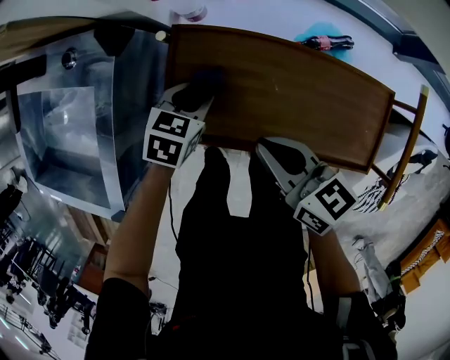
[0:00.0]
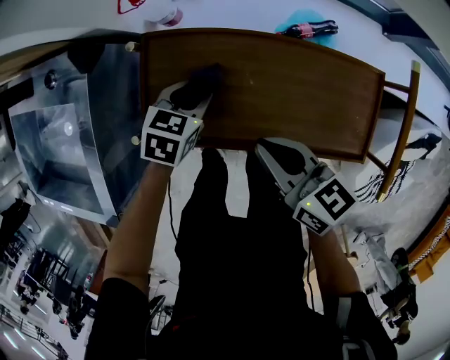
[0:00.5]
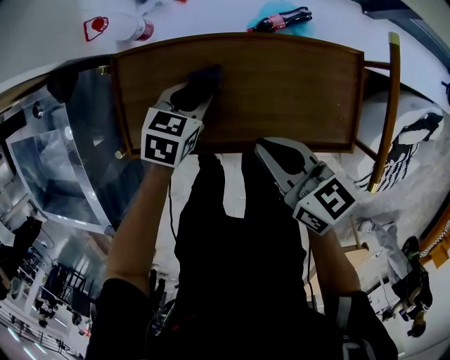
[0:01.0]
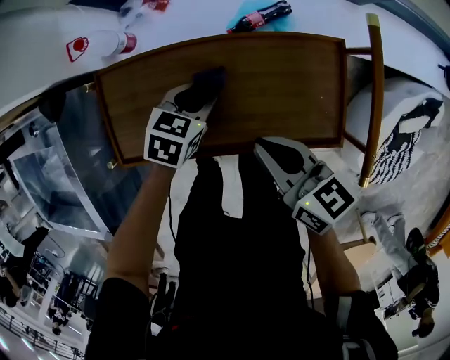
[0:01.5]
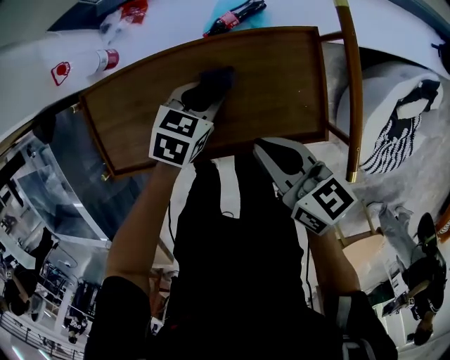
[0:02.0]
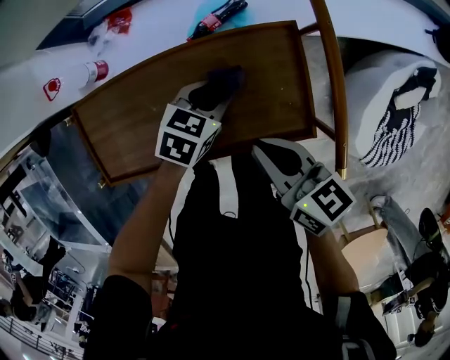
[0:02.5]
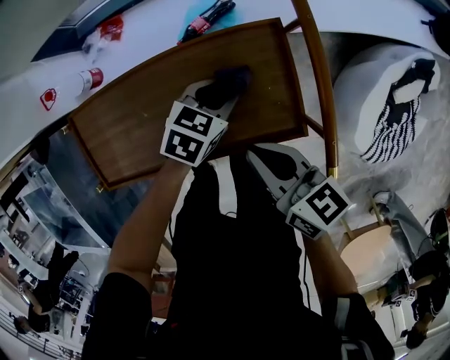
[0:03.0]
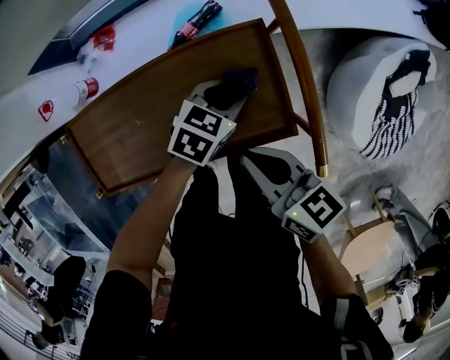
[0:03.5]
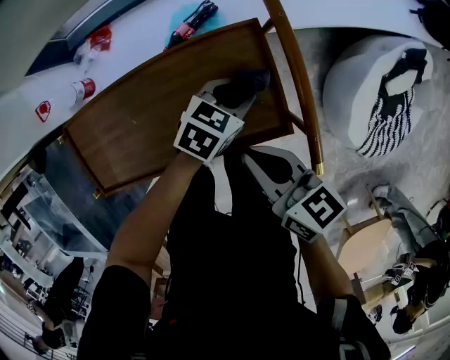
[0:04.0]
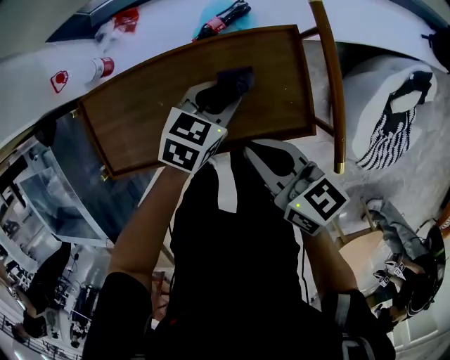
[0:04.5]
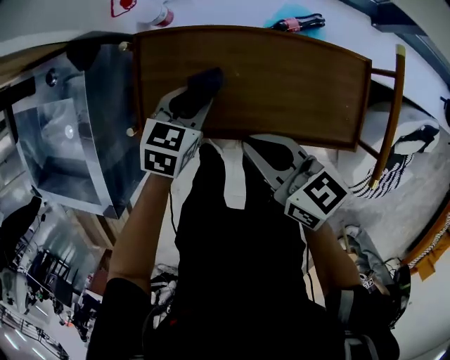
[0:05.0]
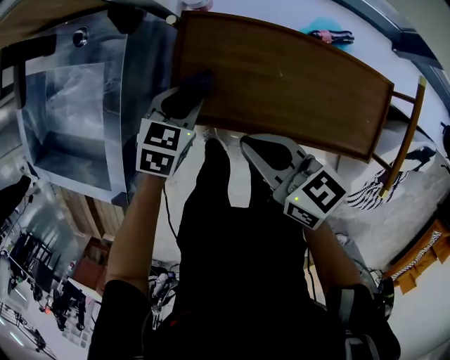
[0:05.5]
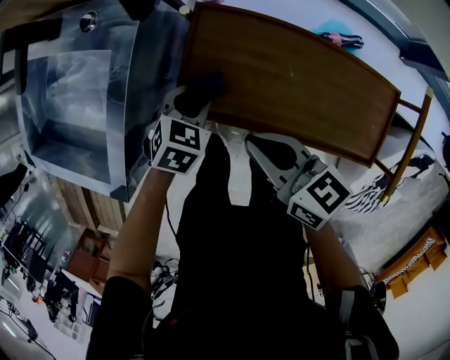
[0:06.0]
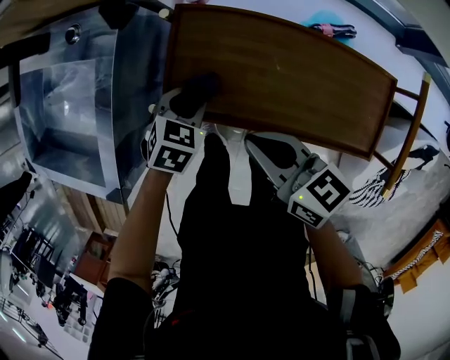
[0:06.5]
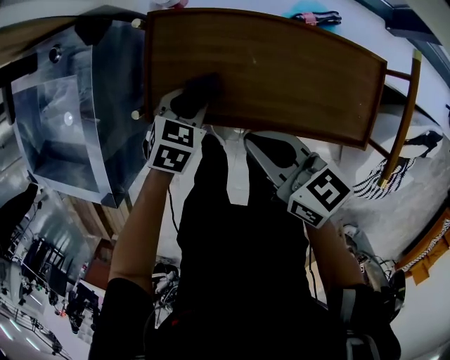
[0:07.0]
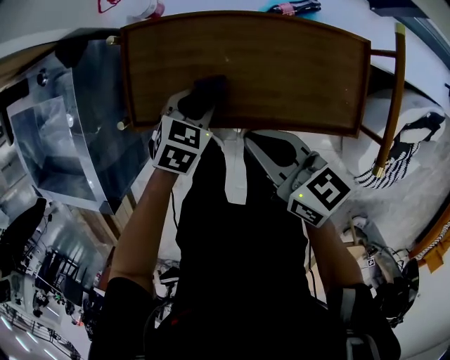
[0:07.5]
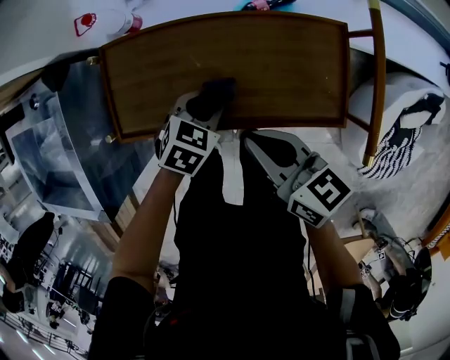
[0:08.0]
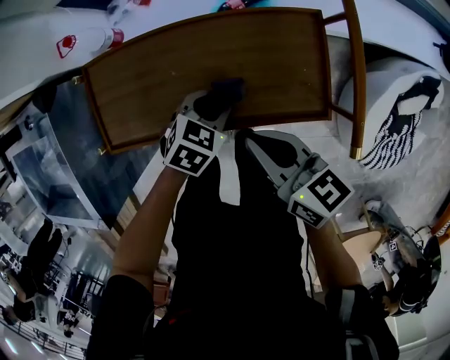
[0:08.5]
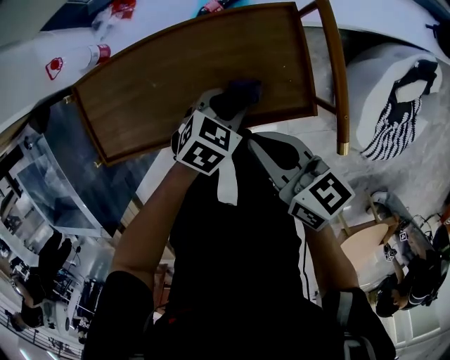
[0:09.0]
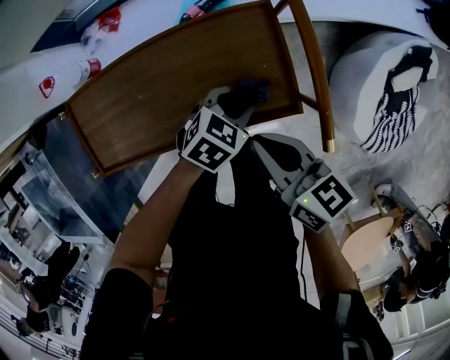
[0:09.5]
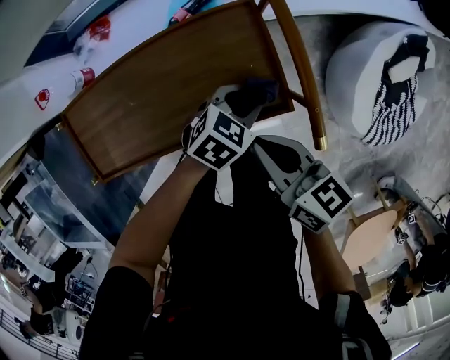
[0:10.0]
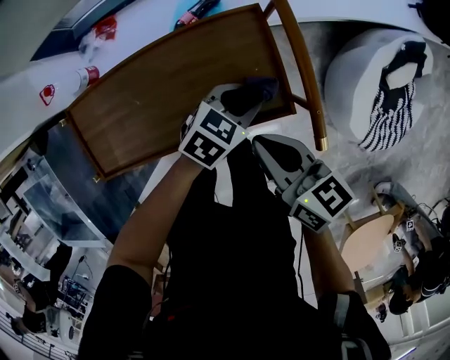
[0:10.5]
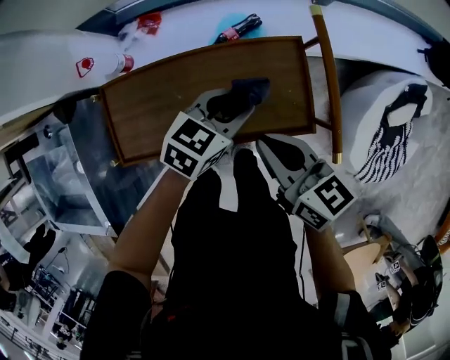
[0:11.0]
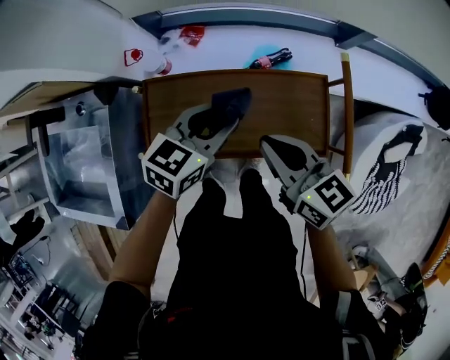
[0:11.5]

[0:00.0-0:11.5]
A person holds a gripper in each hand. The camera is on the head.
0:00.0 to 0:02.0: The two grippers go approximately 25 cm to the right. The left gripper swivels about 20 degrees, while the right gripper swivels some 20 degrees.
0:02.0 to 0:04.0: The left gripper goes about 20 cm to the right. The right gripper travels to the right by approximately 10 cm.
0:04.0 to 0:06.0: The left gripper changes place by roughly 50 cm, and turns by approximately 40 degrees. The right gripper moves approximately 35 cm, and changes its angle by some 40 degrees.
0:06.0 to 0:07.5: Both grippers travel together to the right, roughly 15 cm.
0:07.5 to 0:09.5: The left gripper ends up roughly 30 cm from where it was, and rotates approximately 30 degrees. Meanwhile the right gripper ends up some 20 cm from where it was, and swivels some 20 degrees.
0:09.5 to 0:11.5: The left gripper shifts some 30 cm to the left and upward, and rotates some 40 degrees. Meanwhile the right gripper heads to the left and upward, covering about 20 cm, and turns by about 20 degrees.

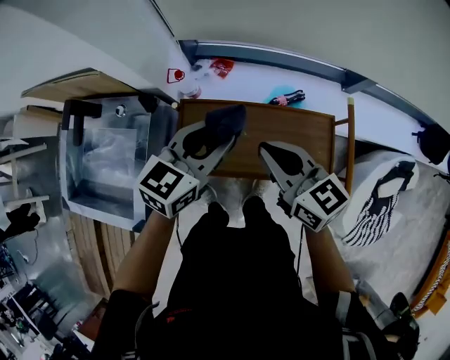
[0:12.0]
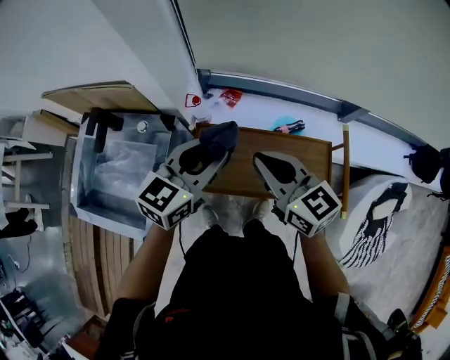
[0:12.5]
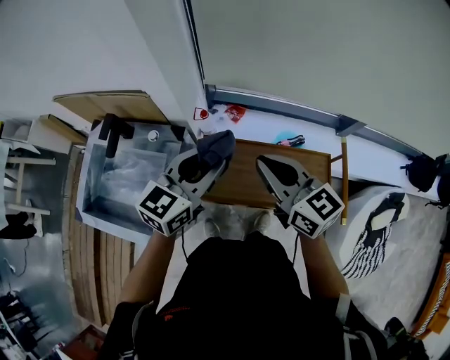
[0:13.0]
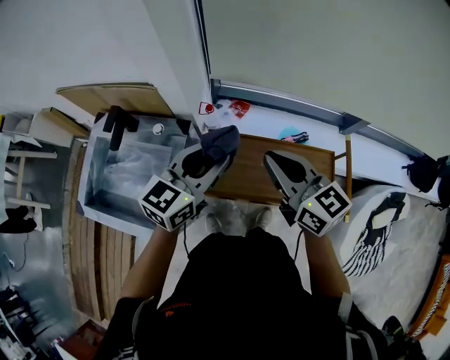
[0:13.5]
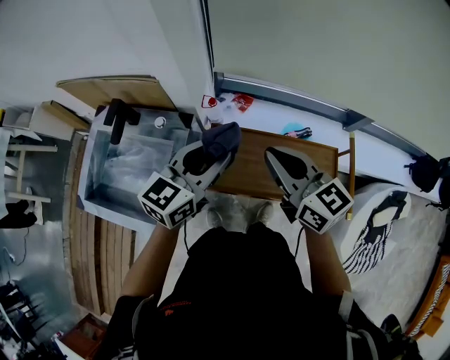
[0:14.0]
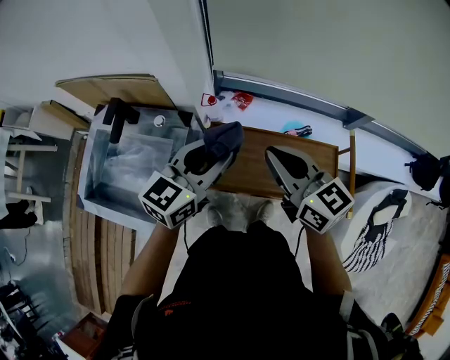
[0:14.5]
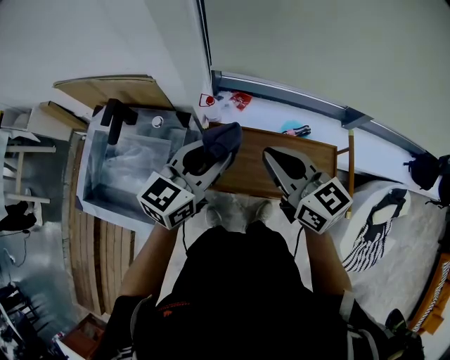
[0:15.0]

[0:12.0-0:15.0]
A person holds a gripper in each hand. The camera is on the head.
0:12.0 to 0:13.5: The right gripper shifts about 15 cm upward and to the left; the left gripper shifts approximately 15 cm to the left and upward.
0:13.5 to 0:15.0: The grippers stay close to where they were, moving slightly.

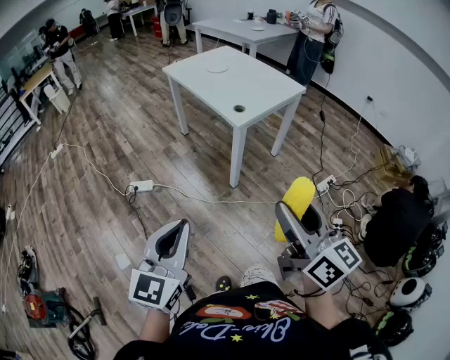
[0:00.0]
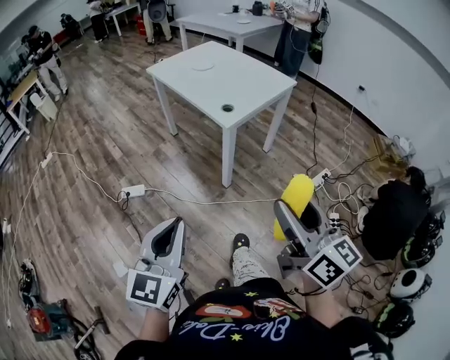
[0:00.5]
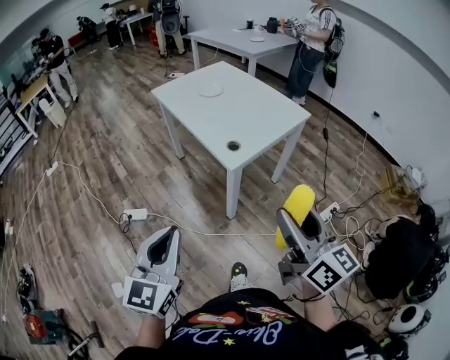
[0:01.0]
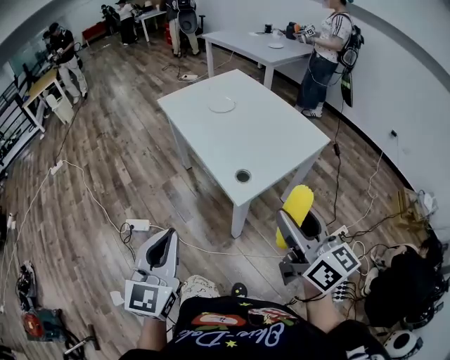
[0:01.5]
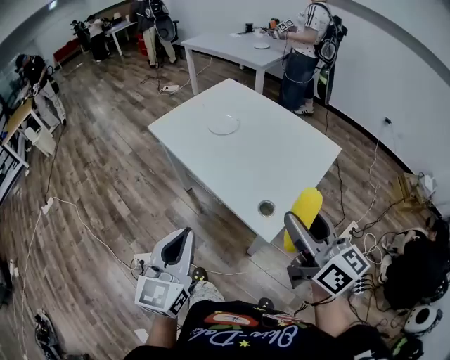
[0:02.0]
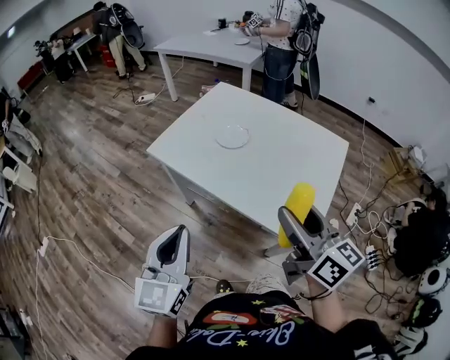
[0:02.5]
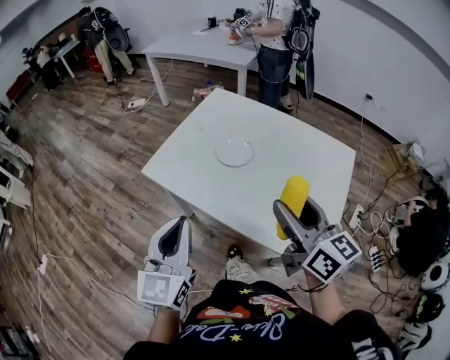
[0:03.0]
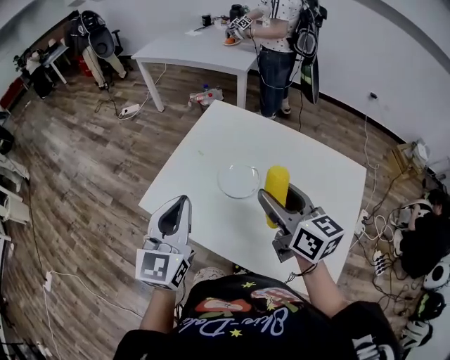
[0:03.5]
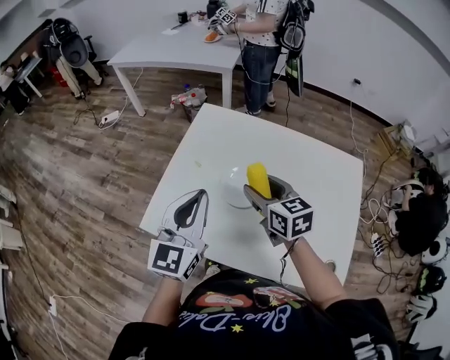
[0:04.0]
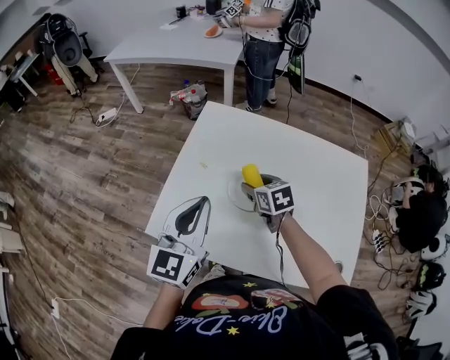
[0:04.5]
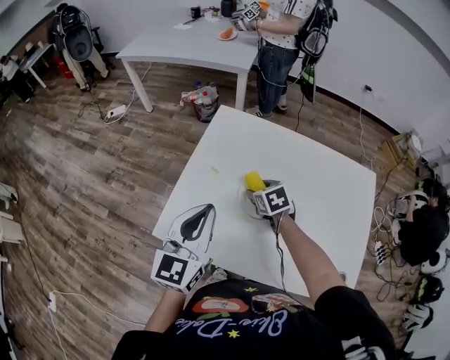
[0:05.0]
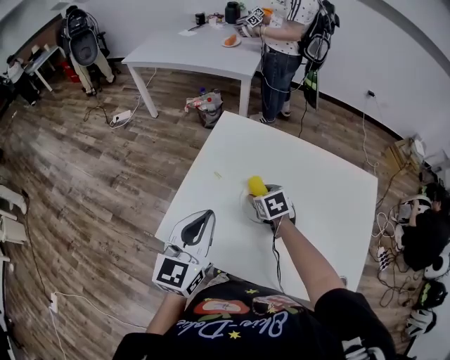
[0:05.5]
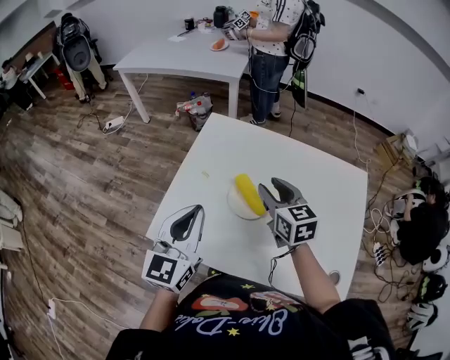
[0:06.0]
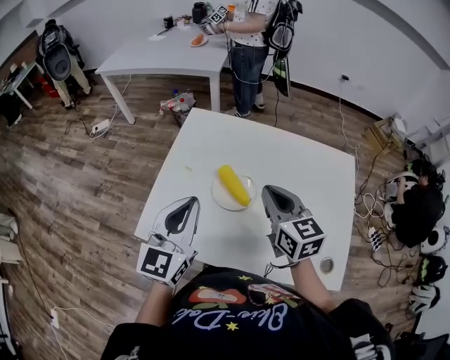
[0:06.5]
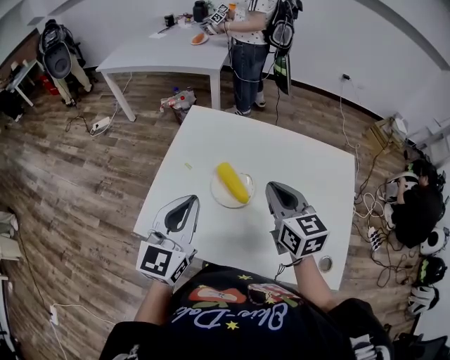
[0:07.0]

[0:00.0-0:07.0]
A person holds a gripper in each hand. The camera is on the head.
0:00.0 to 0:02.0: Both grippers are carried forward, about 50 cm.
0:02.0 to 0:03.5: Both grippers are carried forward, about 50 cm.
0:03.5 to 0:05.0: The right gripper is displaced downward and forward by some 30 cm, and angles its fingers downward, by approximately 50 degrees; the left gripper shifts some 10 cm forward.
0:05.0 to 0:07.0: The left gripper travels to the right by roughly 5 cm; the right gripper heads upward, to the right and backward, covering approximately 25 cm, tips its fingers upward by about 40 degrees, and closes.

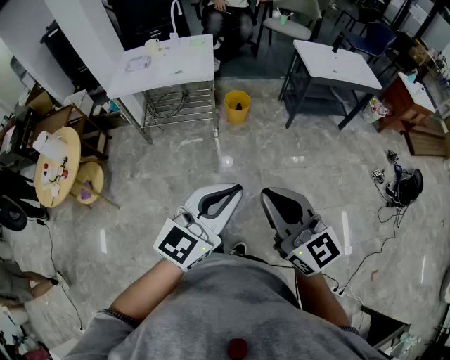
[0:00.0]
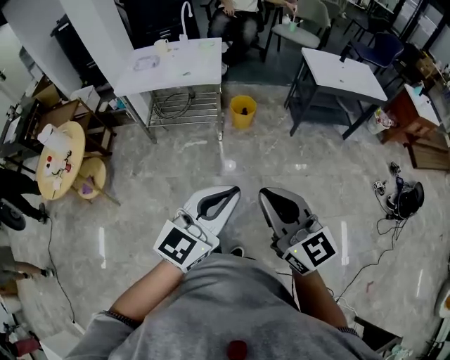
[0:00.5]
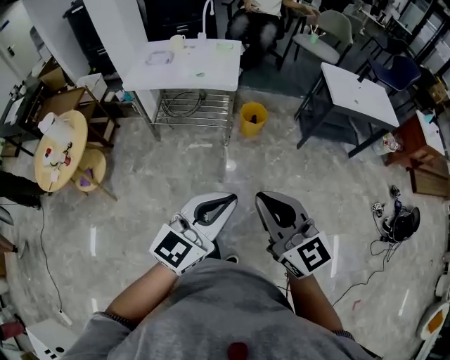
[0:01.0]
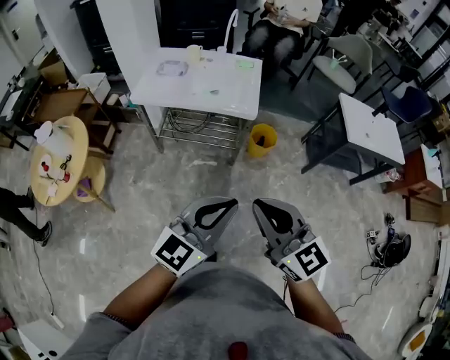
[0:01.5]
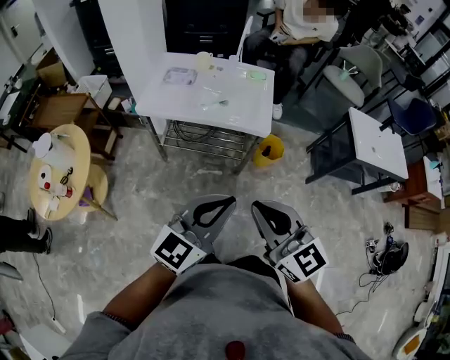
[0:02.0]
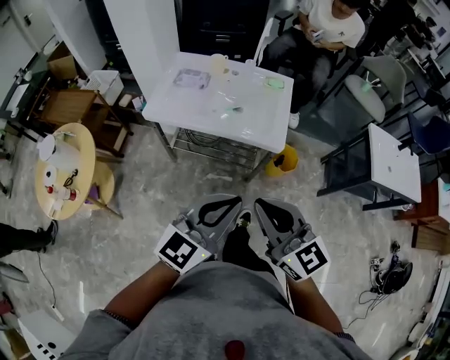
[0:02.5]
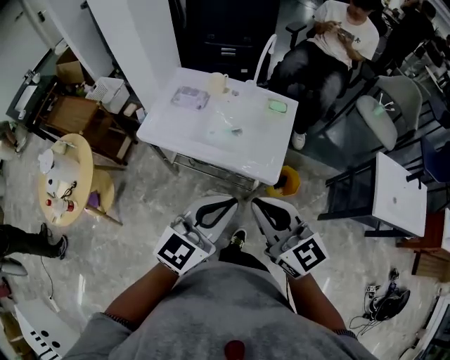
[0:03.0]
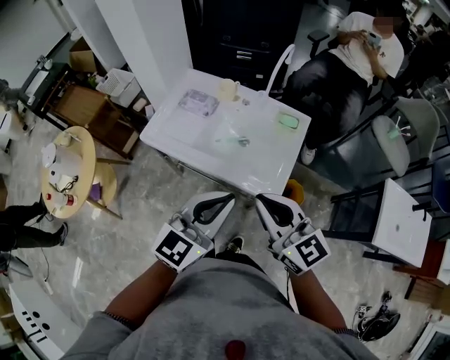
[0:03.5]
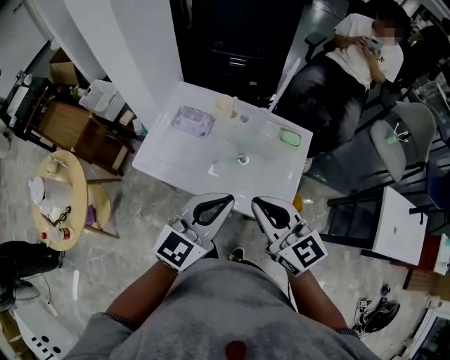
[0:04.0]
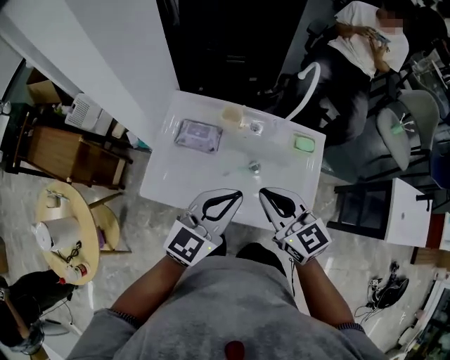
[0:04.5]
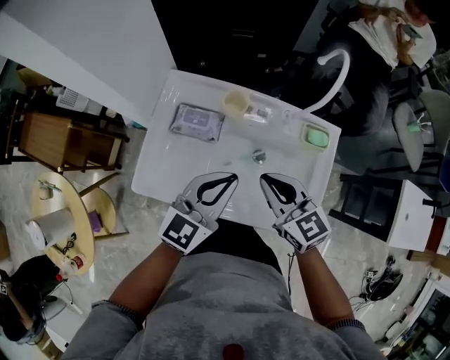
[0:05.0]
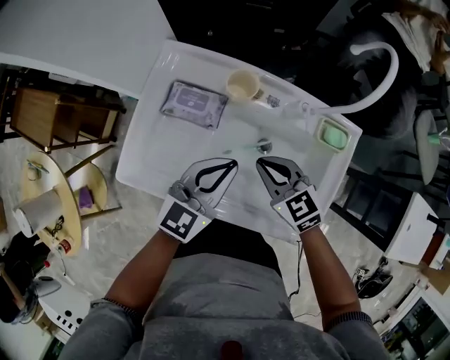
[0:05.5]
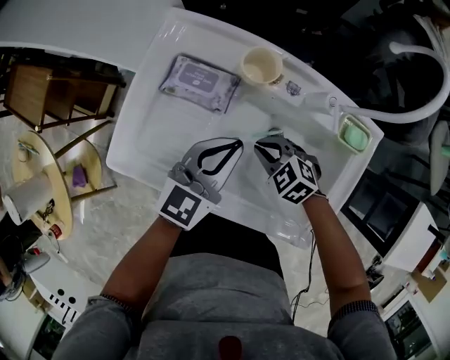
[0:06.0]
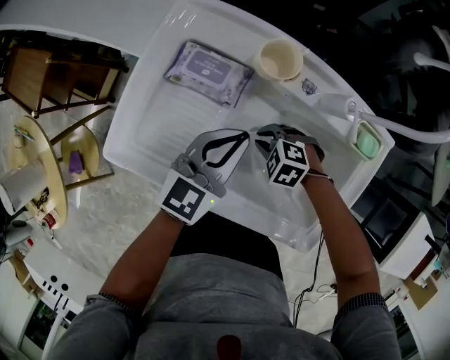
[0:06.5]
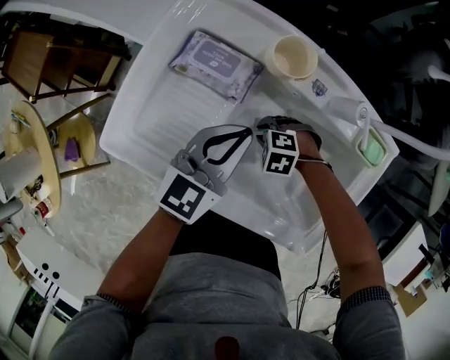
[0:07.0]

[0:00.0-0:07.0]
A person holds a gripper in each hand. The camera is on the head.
0:00.0 to 0:02.0: The two grippers travel together, forward and to the left, roughly 40 cm.
0:02.0 to 0:03.5: The two grippers go roughly 30 cm forward.
0:03.5 to 0:05.0: Both grippers travel together forward and downward, some 35 cm.
0:05.0 to 0:07.0: The left gripper shifts some 20 cm downward. Meanwhile the right gripper shifts approximately 35 cm downward, and tips its fingers downward by approximately 50 degrees.
